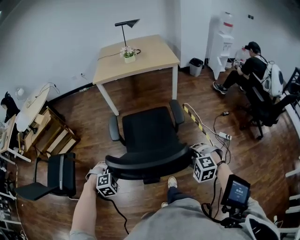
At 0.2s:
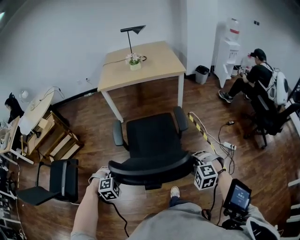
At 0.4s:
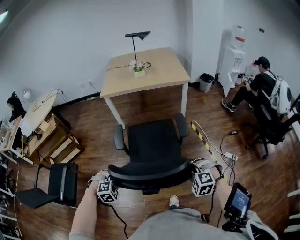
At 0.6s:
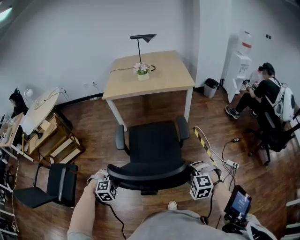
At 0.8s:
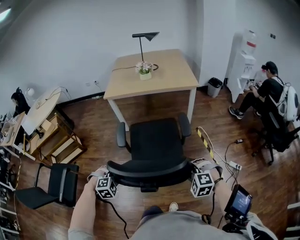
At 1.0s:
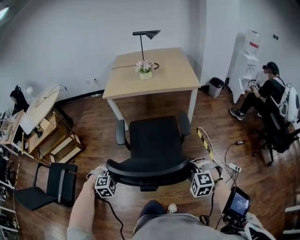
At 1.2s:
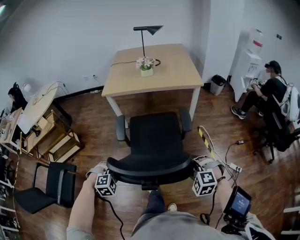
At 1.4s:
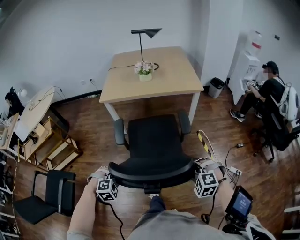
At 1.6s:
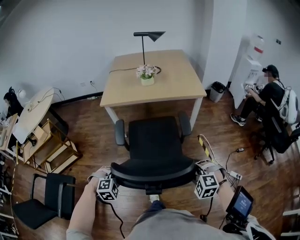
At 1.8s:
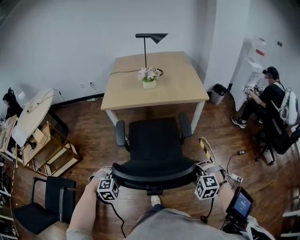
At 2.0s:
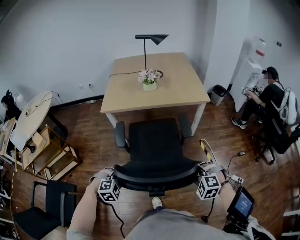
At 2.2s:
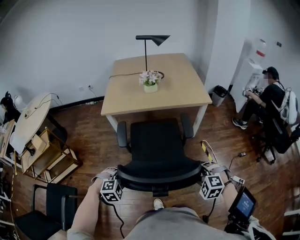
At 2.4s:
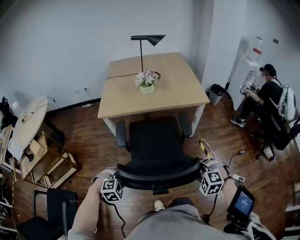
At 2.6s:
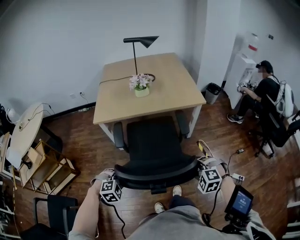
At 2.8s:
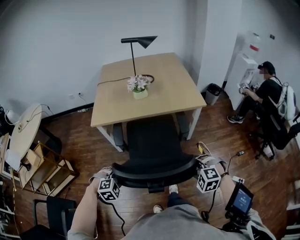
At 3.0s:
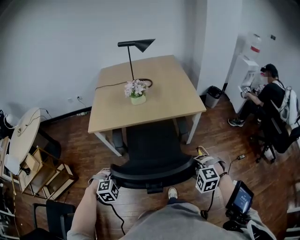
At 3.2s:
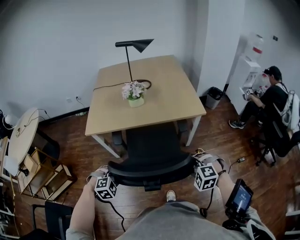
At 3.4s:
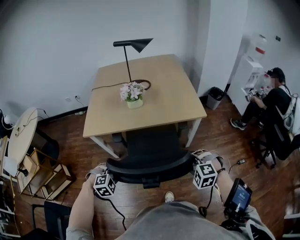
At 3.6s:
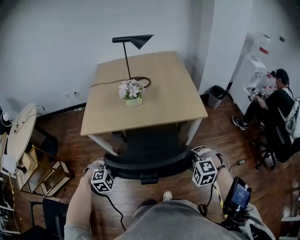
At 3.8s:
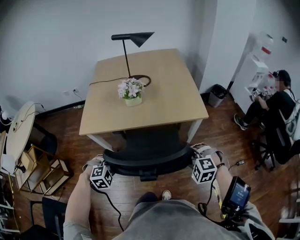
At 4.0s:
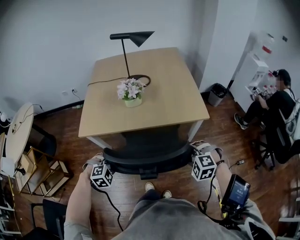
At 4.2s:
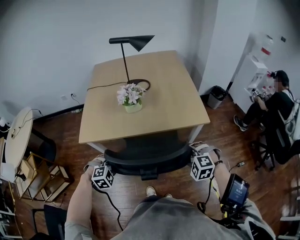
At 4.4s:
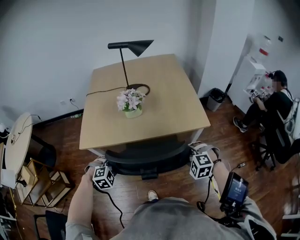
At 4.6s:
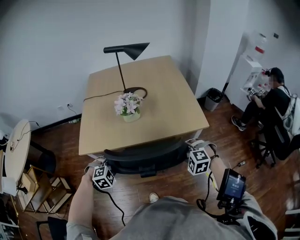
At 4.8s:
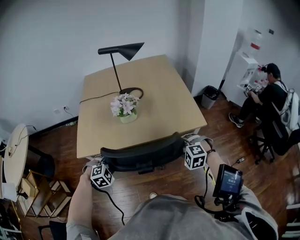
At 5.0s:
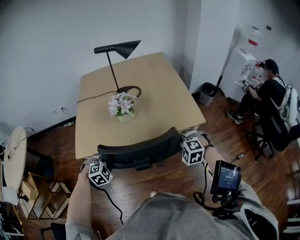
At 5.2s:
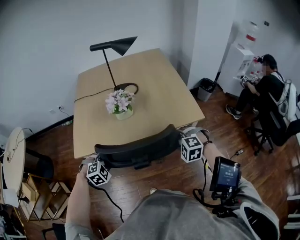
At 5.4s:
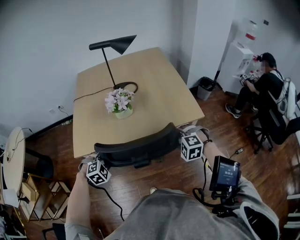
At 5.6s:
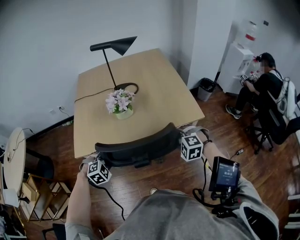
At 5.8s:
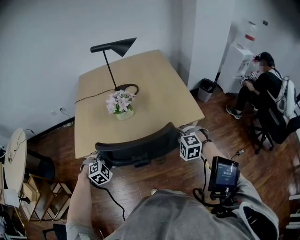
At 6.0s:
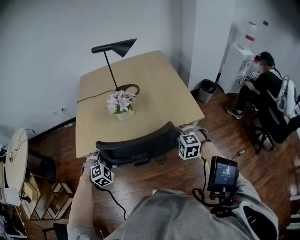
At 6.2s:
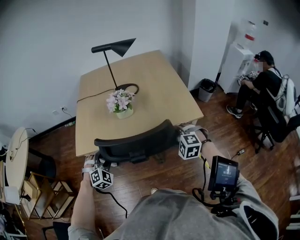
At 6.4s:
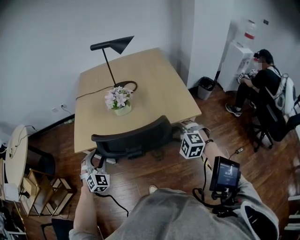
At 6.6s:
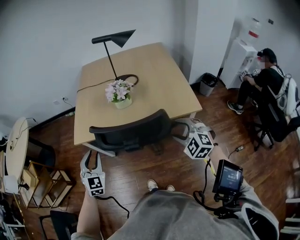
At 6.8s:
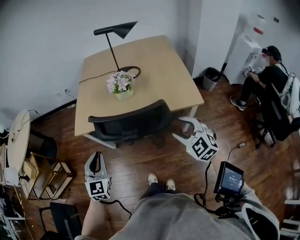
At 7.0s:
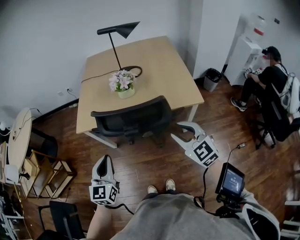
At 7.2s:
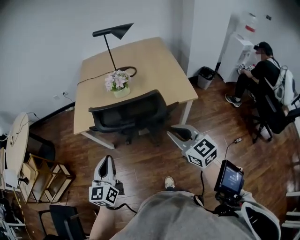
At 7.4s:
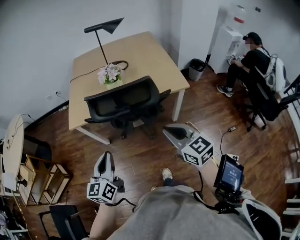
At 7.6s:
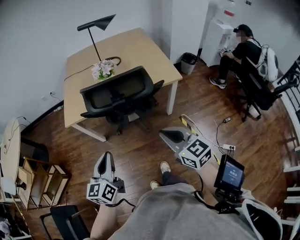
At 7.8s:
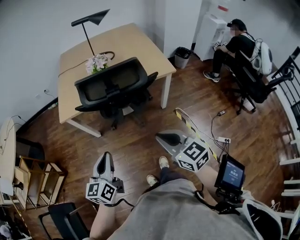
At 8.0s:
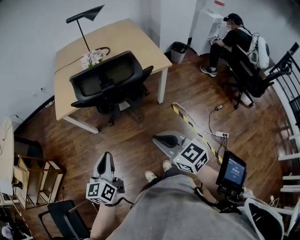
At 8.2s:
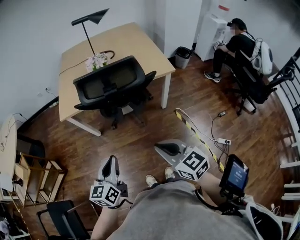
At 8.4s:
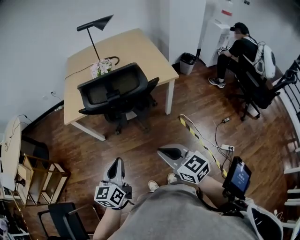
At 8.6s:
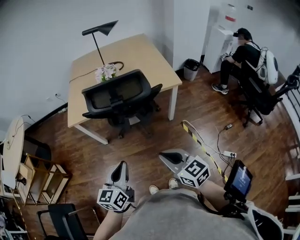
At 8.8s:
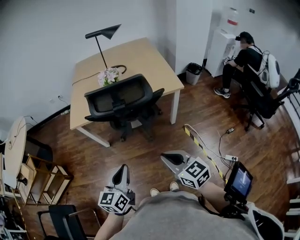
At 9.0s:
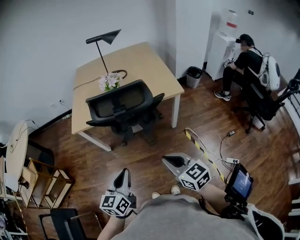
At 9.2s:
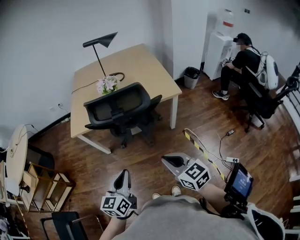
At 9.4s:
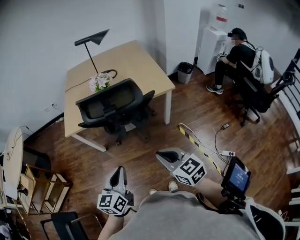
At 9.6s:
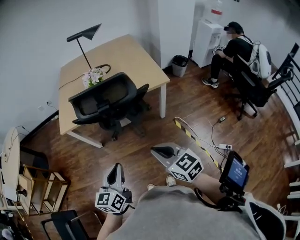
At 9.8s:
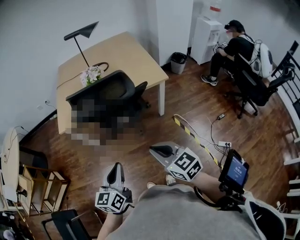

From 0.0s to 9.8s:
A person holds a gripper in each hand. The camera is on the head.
From 0.0s to 1.4s: The grippers both shift forward by about 25 cm.
From 1.4s to 2.8s: The two grippers go about 20 cm forward.
From 2.8s to 4.2s: The two grippers go some 25 cm forward.
From 4.2s to 5.6s: The two grippers go some 10 cm forward.
From 5.6s to 7.0s: The left gripper goes some 20 cm backward and upward, tilts its fingers about 50 degrees upward, and closes its fingers, while the right gripper goes approximately 15 cm upward and backward, and points its fingers some 40 degrees further upward.
From 7.0s to 8.4s: Both grippers travel together backward, some 20 cm. The right gripper swivels approximately 30 degrees, and closes up. The left gripper changes its angle by roughly 30 degrees.
From 8.4s to 9.8s: The grippers stay close to where they were, moving slightly.

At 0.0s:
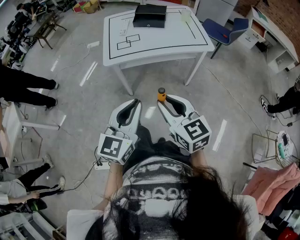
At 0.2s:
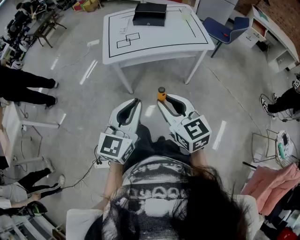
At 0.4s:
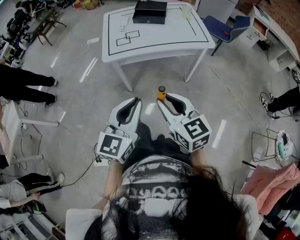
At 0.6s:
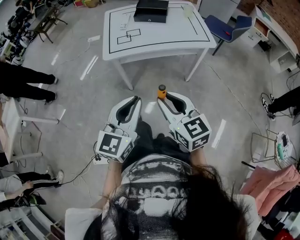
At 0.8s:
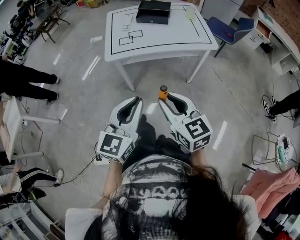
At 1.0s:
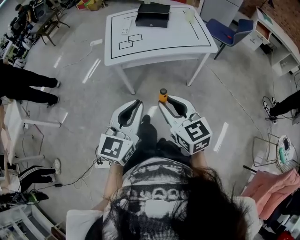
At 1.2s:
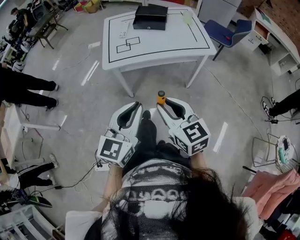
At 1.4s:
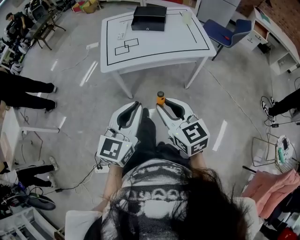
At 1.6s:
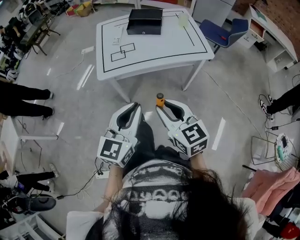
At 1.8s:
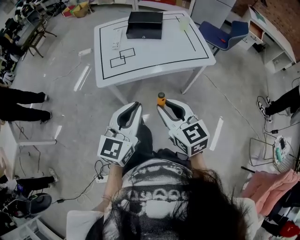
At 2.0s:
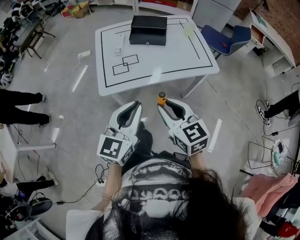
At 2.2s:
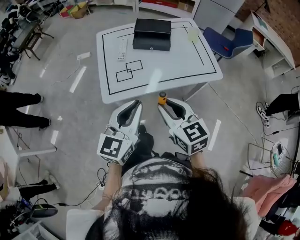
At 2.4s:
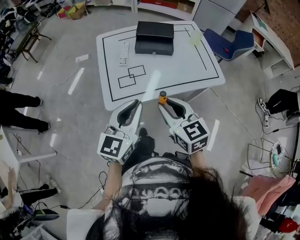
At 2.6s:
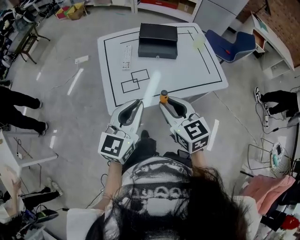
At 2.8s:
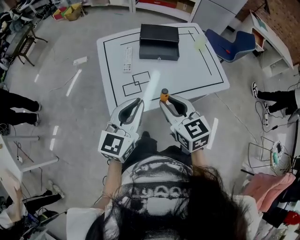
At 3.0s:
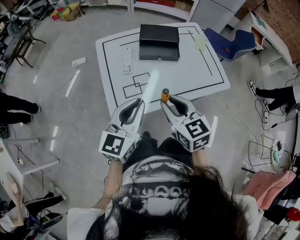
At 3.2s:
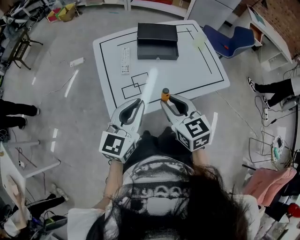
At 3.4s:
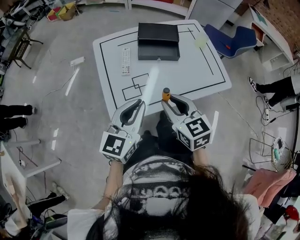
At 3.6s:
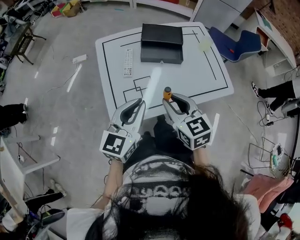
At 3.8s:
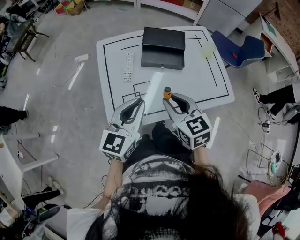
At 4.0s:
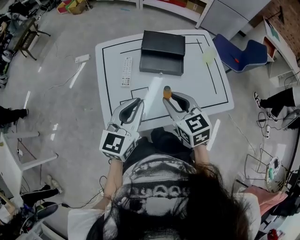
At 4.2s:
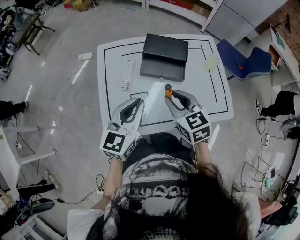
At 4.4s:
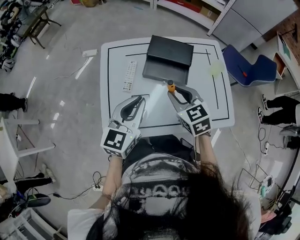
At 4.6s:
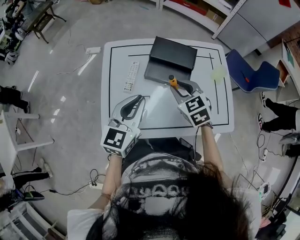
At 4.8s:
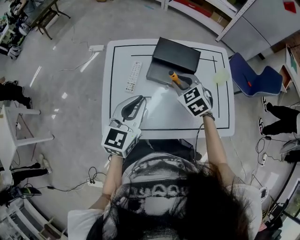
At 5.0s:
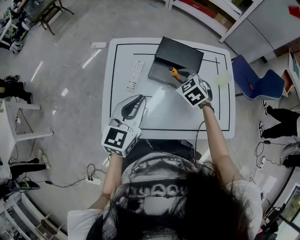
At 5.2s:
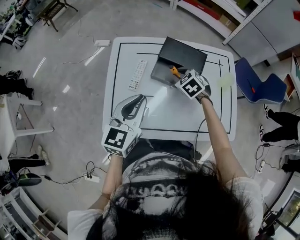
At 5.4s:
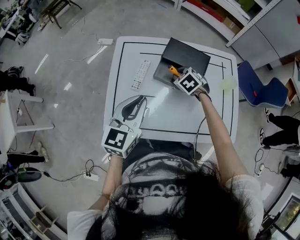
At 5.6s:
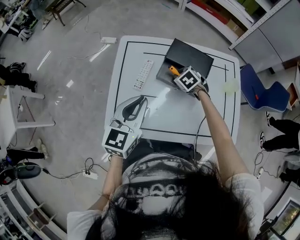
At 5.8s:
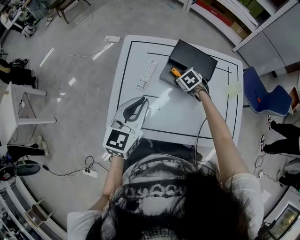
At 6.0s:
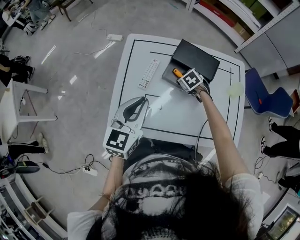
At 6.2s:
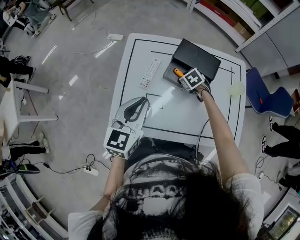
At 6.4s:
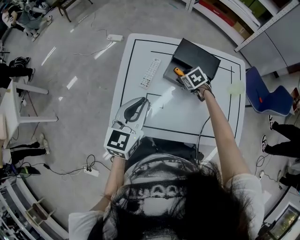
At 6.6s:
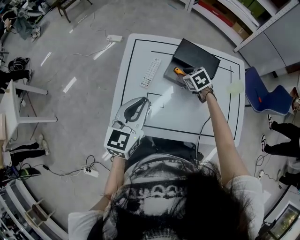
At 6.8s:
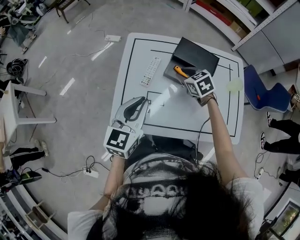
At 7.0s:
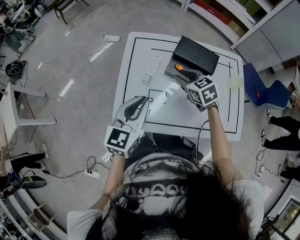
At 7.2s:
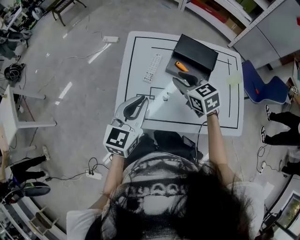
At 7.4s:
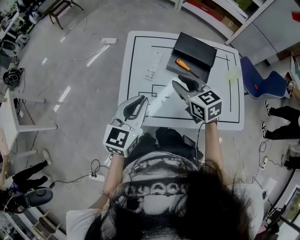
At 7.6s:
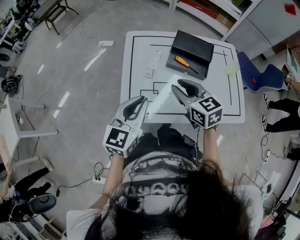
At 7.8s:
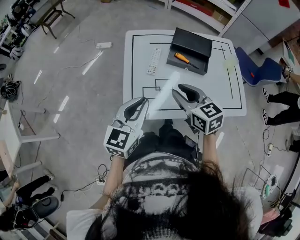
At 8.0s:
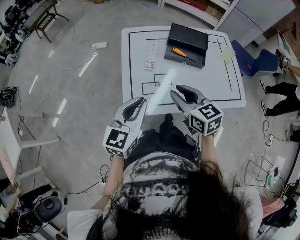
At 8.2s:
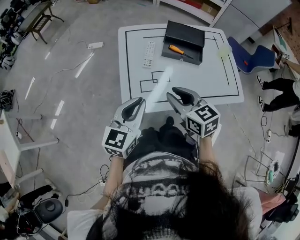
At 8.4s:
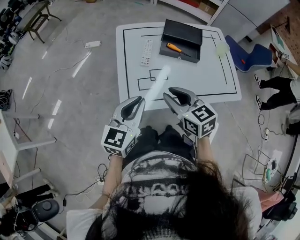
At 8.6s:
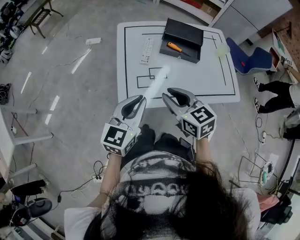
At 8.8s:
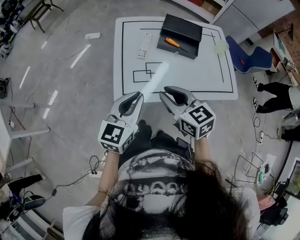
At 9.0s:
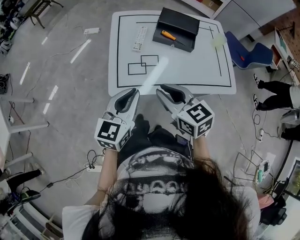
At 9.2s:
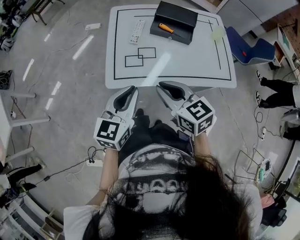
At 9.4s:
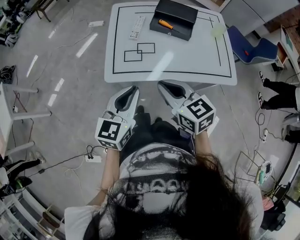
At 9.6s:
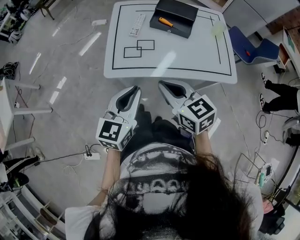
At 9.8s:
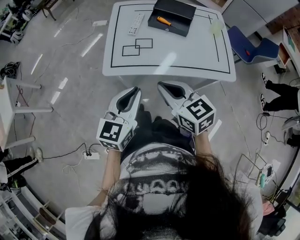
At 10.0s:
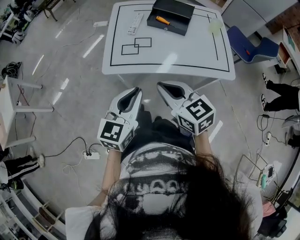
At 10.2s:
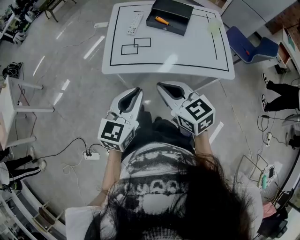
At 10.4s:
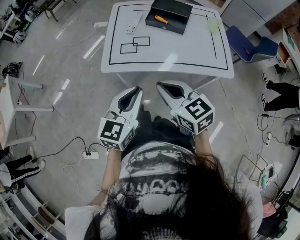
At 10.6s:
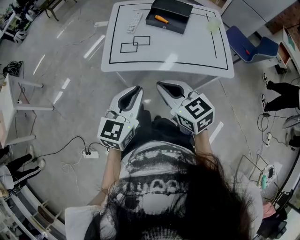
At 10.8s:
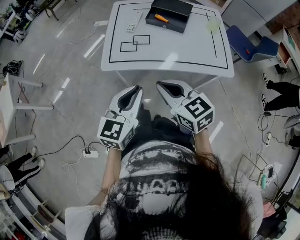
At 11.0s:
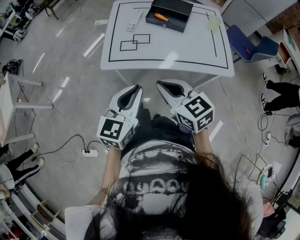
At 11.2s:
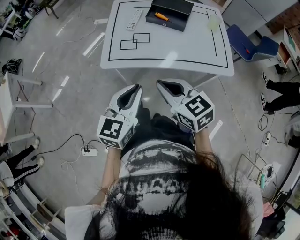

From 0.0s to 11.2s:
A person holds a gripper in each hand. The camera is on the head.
From 0.0s to 1.6s: The two grippers go some 10 cm forward.
From 1.6s to 3.2s: The left gripper travels forward and to the left by about 35 cm. The right gripper travels forward by about 30 cm.
From 3.2s to 4.8s: The right gripper heads forward, covering about 30 cm, and swivels approximately 40 degrees, while the left gripper shifts approximately 20 cm forward.
From 4.8s to 6.4s: The right gripper moves downward and forward, about 15 cm, and turns by about 20 degrees.
From 6.4s to 8.0s: The left gripper moves backward and to the left, approximately 15 cm. The right gripper shifts some 35 cm backward, upward and to the left, and points its fingers about 40 degrees further upward.
From 8.0s to 9.6s: The left gripper moves backward and to the right, approximately 20 cm. Meanwhile the right gripper goes some 15 cm backward, and closes up.
From 9.6s to 11.2s: The two grippers go approximately 5 cm backward.

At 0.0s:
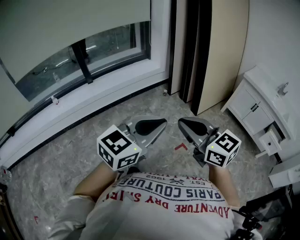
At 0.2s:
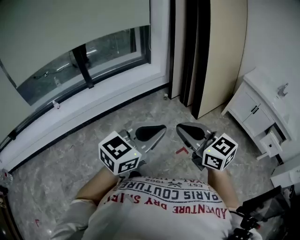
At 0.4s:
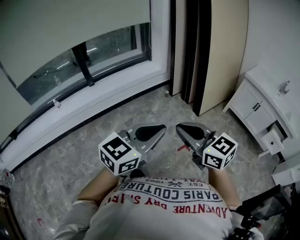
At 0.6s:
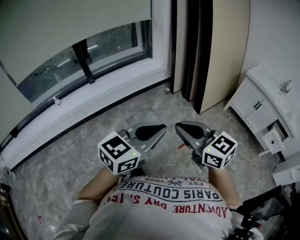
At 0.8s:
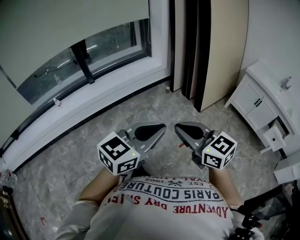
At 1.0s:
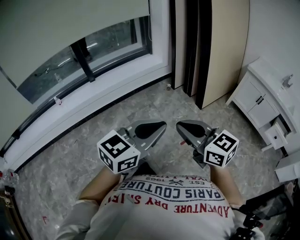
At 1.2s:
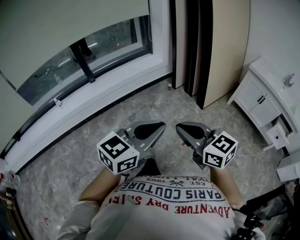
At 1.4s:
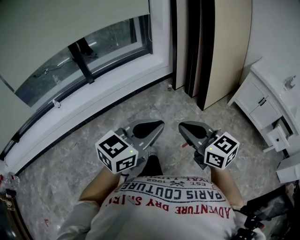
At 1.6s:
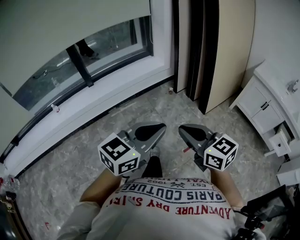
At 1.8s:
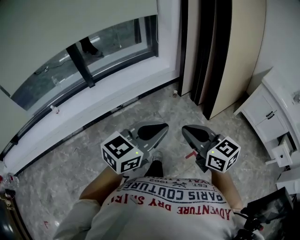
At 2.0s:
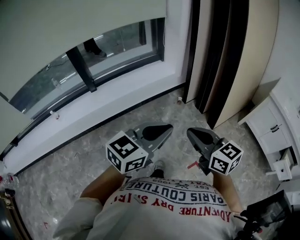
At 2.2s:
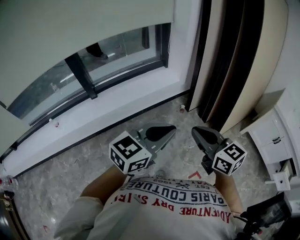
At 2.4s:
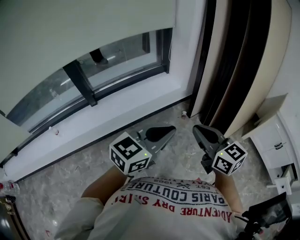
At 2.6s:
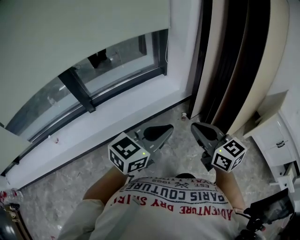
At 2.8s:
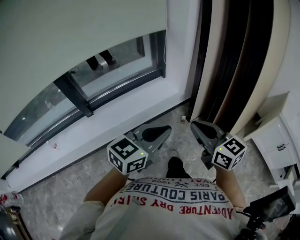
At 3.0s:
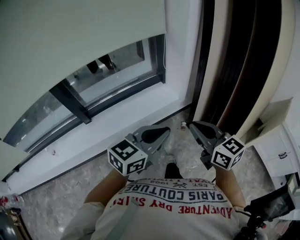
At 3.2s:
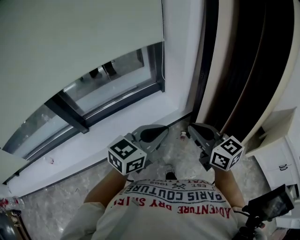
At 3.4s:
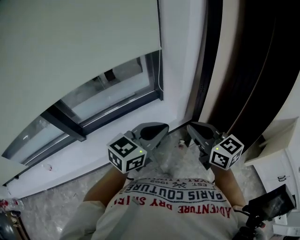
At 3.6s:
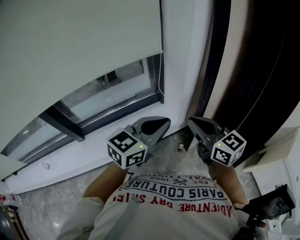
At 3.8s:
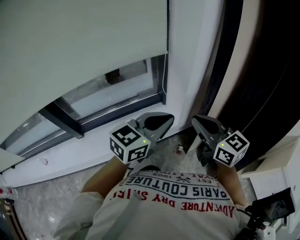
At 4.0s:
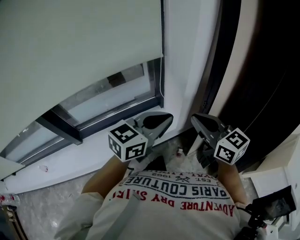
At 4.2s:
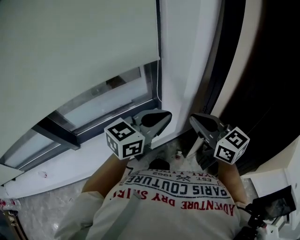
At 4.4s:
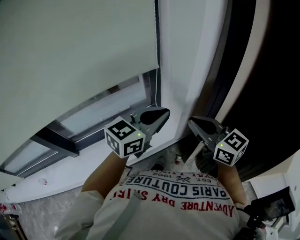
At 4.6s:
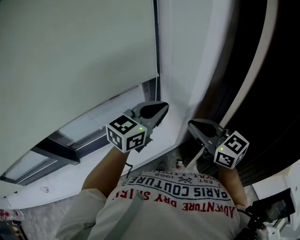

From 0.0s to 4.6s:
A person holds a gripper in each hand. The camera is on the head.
From 0.0s to 1.6s: The left gripper is displaced forward by roughly 10 cm, while the right gripper goes roughly 10 cm forward and downward.
From 1.6s to 3.0s: The two grippers travel together, forward, about 50 cm.
From 3.0s to 4.6s: Both grippers travel together forward, approximately 40 cm.
